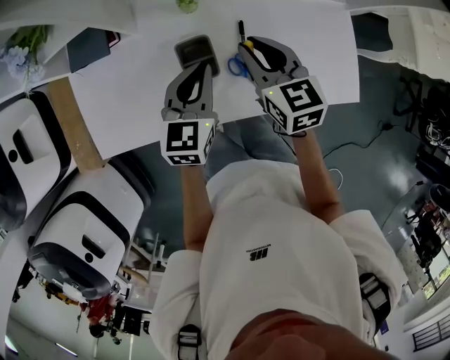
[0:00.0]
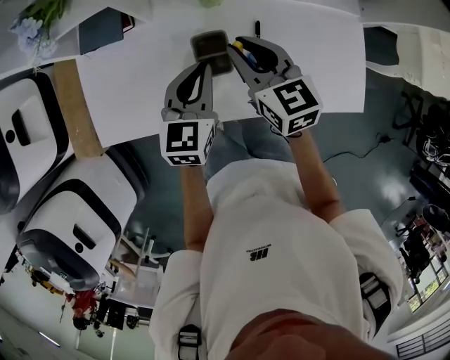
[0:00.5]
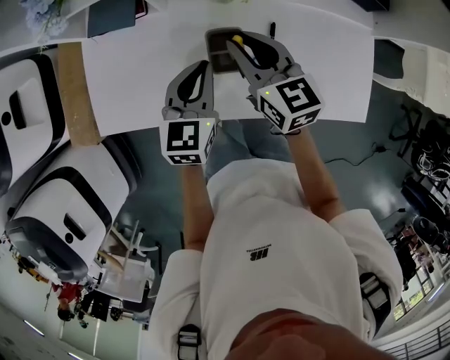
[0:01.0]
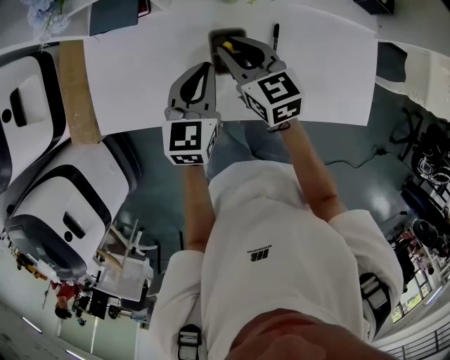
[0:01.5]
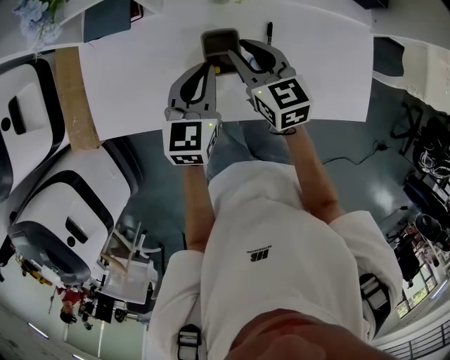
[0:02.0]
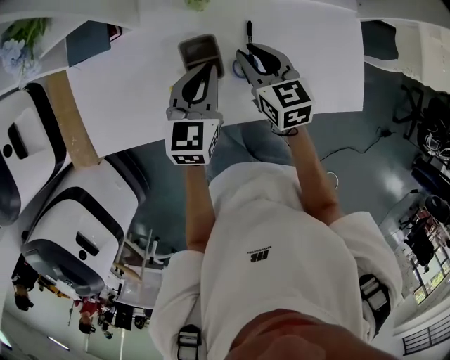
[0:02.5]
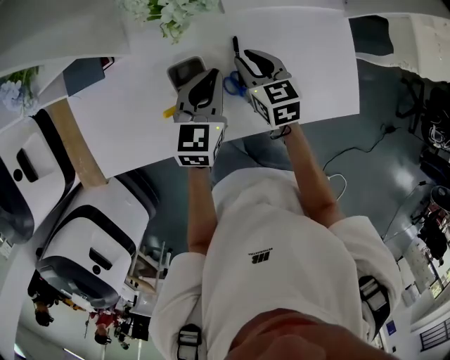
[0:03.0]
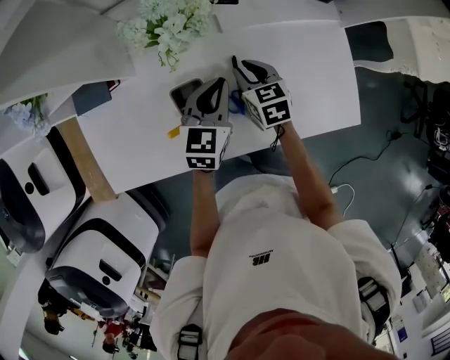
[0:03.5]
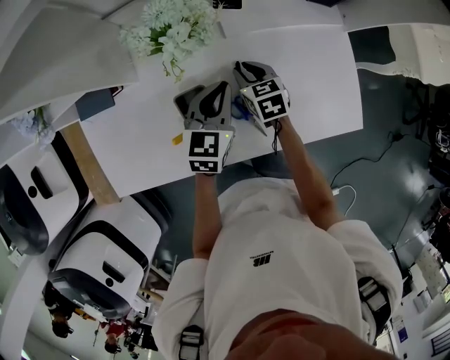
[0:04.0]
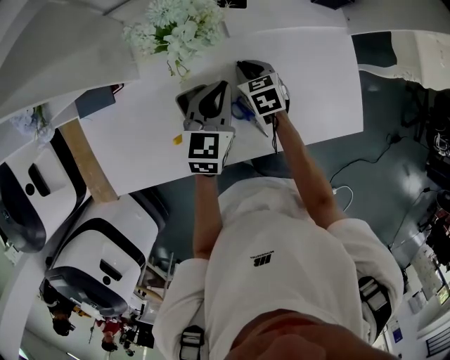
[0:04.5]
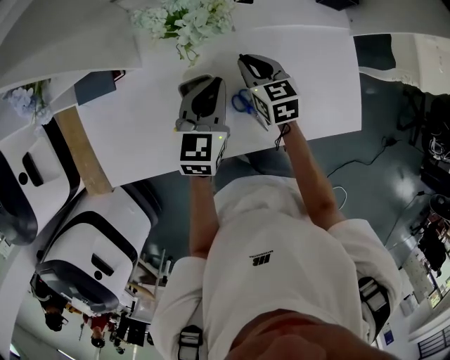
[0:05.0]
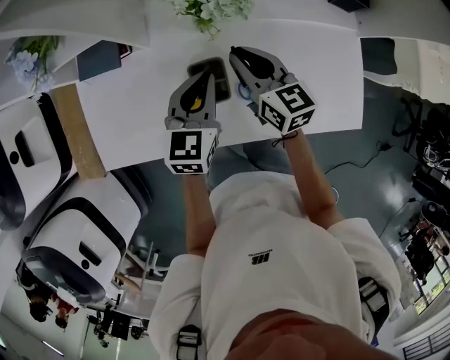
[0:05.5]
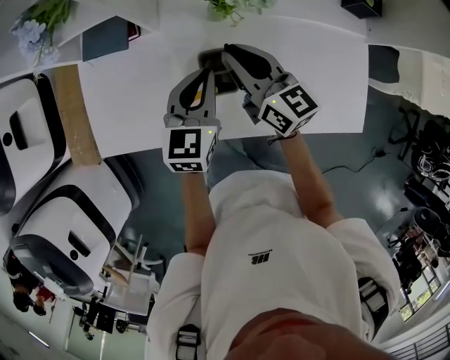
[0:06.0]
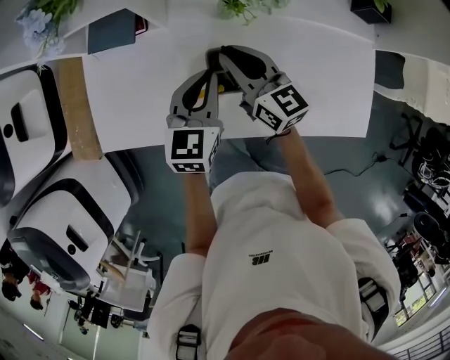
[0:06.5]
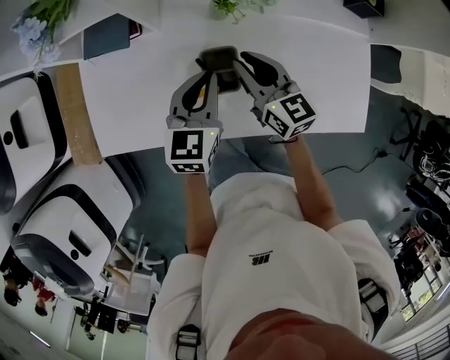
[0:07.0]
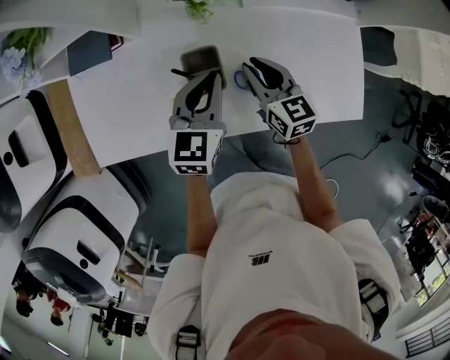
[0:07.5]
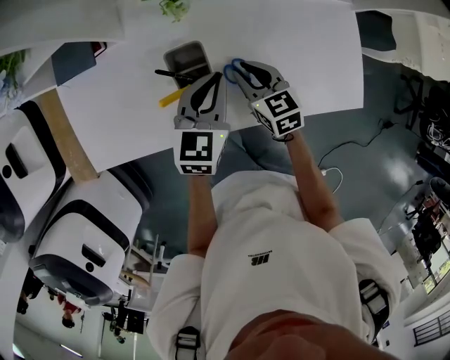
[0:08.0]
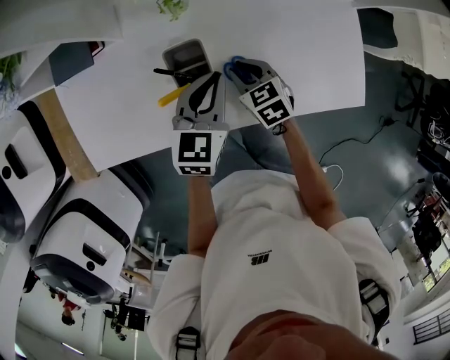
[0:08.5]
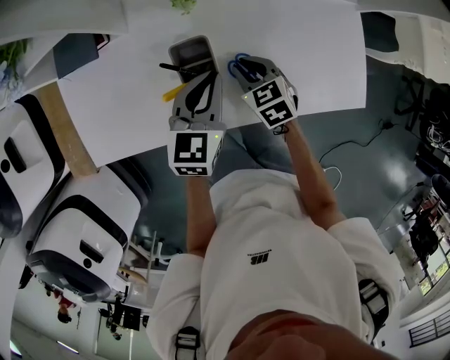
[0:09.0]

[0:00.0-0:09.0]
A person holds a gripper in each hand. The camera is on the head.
0.0 to 2.0 s: The two grippers go some 5 cm to the left.
2.0 to 4.5 s: The right gripper goes approximately 20 cm downward, to the right and forward, and changes its angle by about 20 degrees. Meanwhile the left gripper heads to the right and forward, covering about 15 cm.
4.5 to 7.0 s: The right gripper travels upward and to the left by about 20 cm, and tips its fingers upward by roughly 40 degrees. The left gripper travels to the left by roughly 10 cm.
7.0 to 9.0 s: The left gripper shifts approximately 5 cm to the right. The right gripper heads downward, backward and to the right, covering roughly 15 cm, and angles its fingers downward, by some 30 degrees.

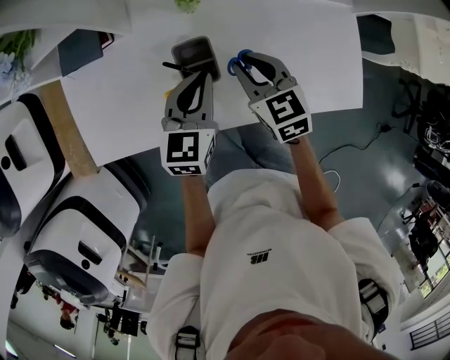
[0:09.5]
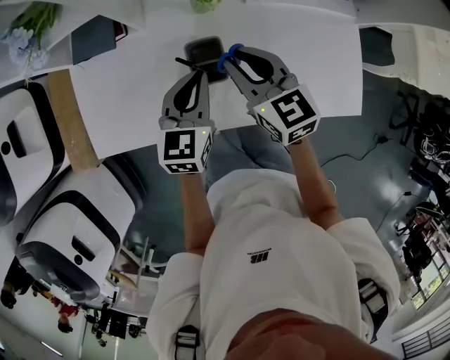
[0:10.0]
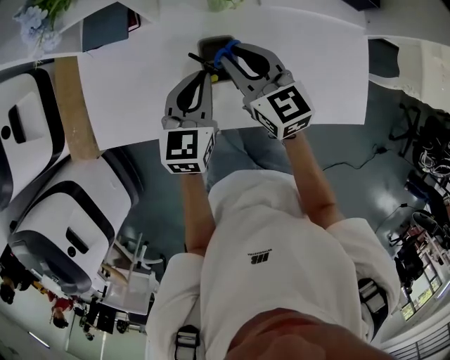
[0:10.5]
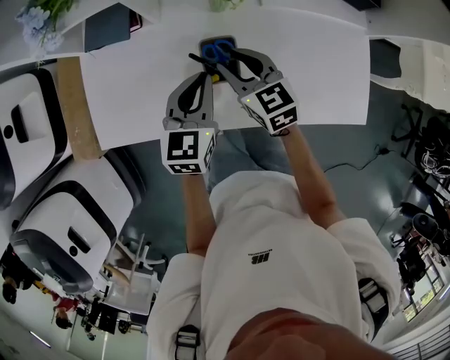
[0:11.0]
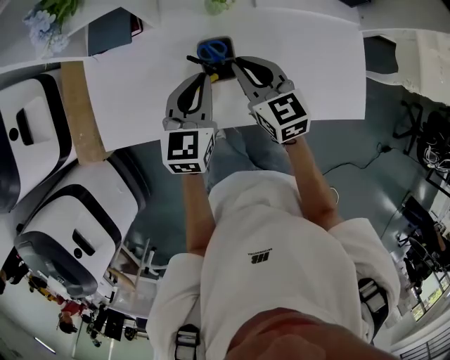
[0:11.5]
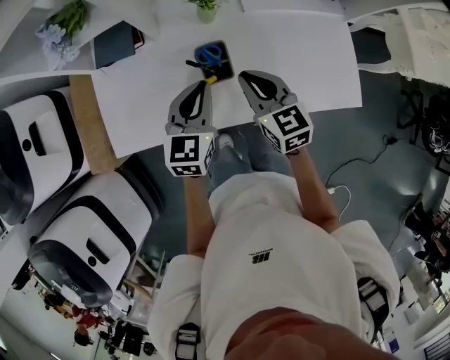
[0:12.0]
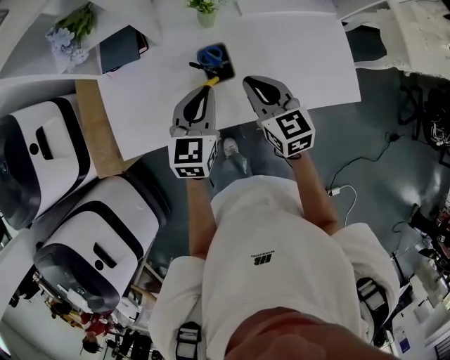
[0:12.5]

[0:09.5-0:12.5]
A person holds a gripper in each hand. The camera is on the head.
9.5 to 11.0 s: Both grippers travel together to the left, approximately 5 cm.
11.0 to 12.5 s: The left gripper shifts approximately 10 cm upward and backward, while the right gripper travels backward and upward by about 15 cm, and closes.

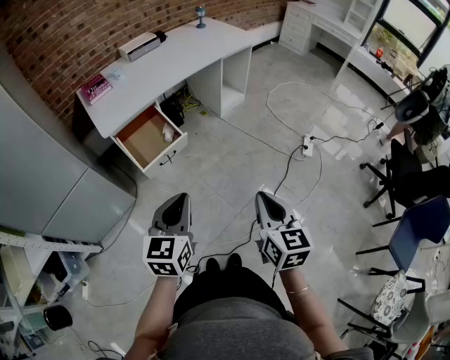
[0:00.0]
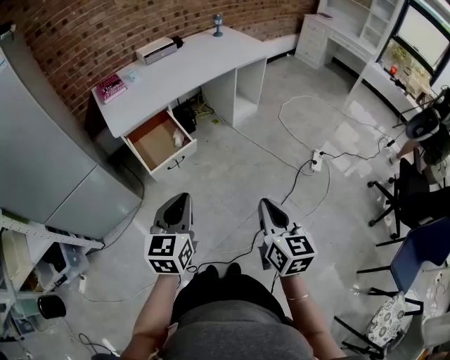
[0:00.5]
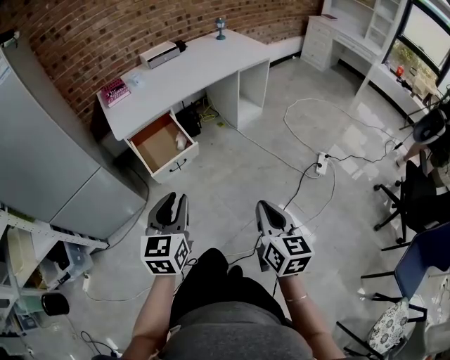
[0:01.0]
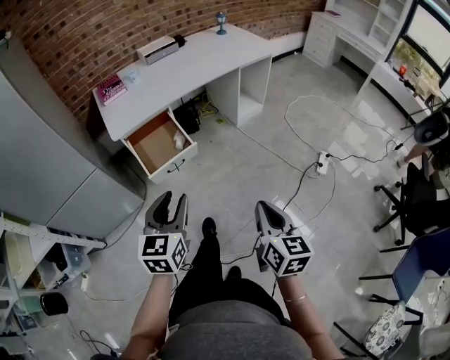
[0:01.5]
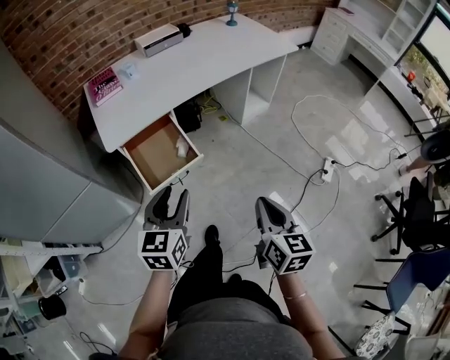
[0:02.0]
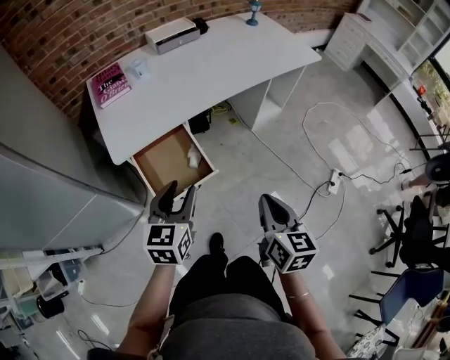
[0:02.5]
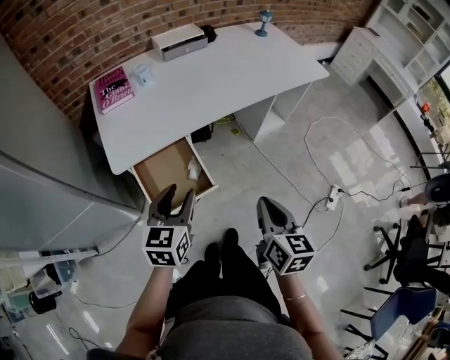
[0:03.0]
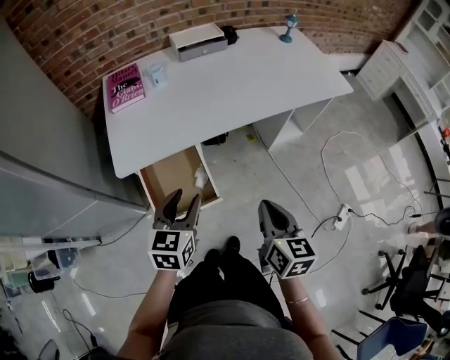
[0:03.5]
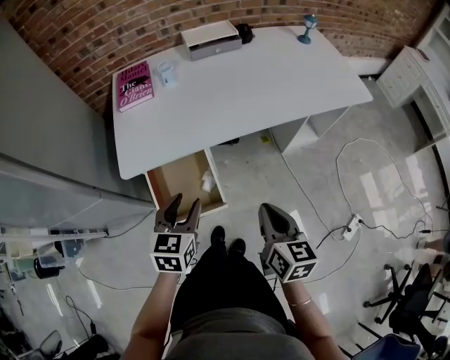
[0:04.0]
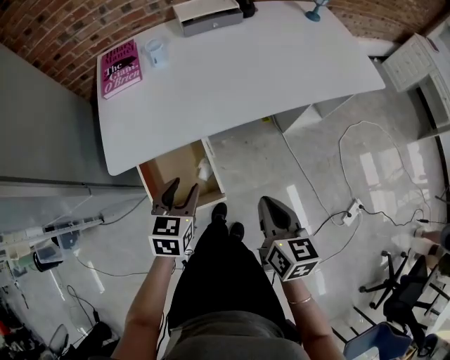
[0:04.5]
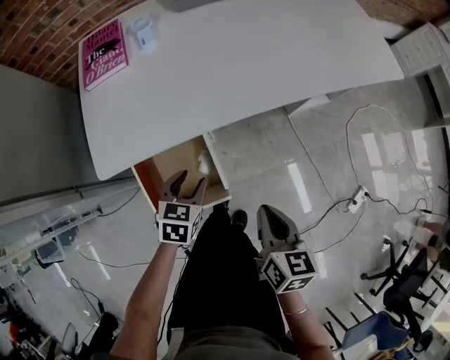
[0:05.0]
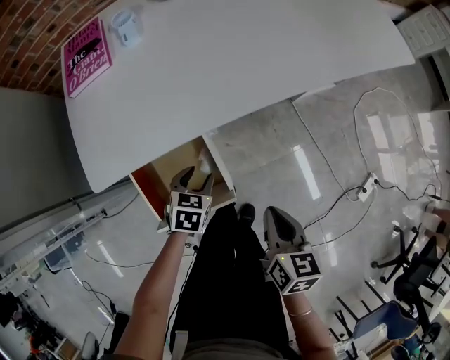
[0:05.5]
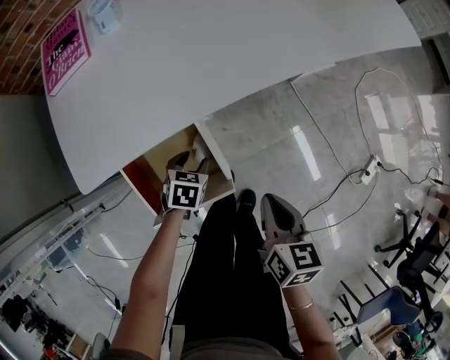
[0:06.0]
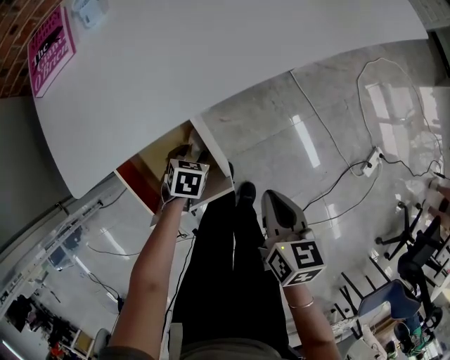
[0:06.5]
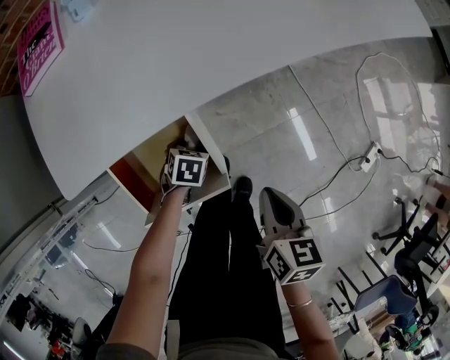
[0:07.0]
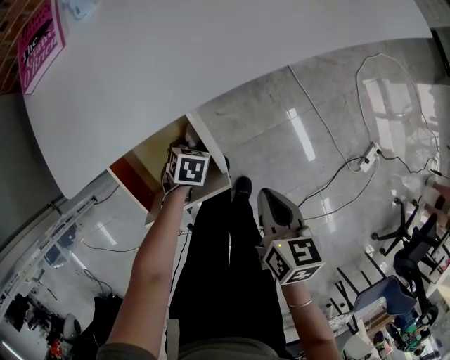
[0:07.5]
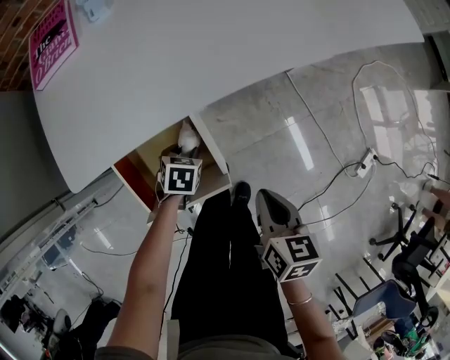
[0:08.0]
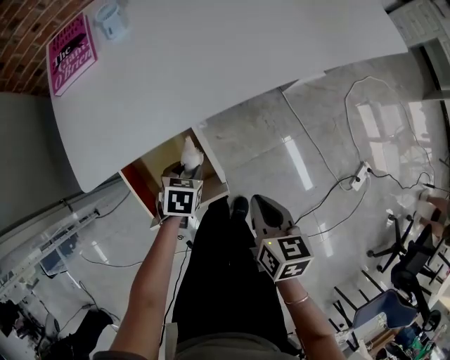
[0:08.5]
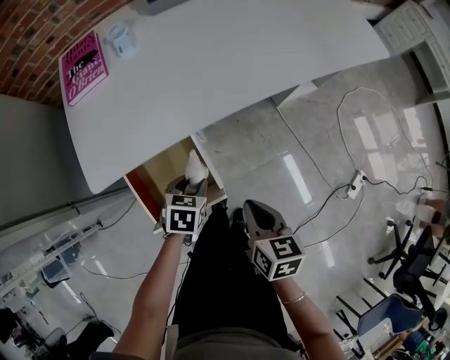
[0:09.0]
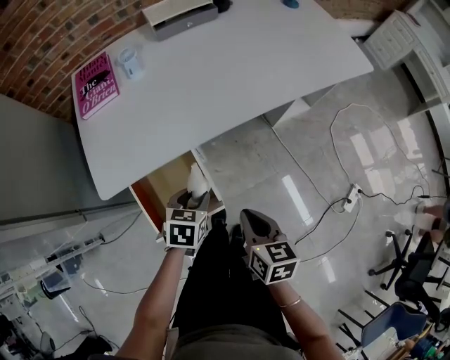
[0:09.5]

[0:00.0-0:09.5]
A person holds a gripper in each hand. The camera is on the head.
0.0 to 2.0 s: The grippers both shift forward by roughly 20 cm. The left gripper opens.
2.0 to 4.0 s: Both grippers travel together forward, approximately 25 cm.
4.0 to 5.5 s: The right gripper travels downward by about 15 cm, while the left gripper travels downward by some 25 cm, and changes its angle by approximately 30 degrees.
5.5 to 7.5 s: The right gripper heads downward, covering some 5 cm. The left gripper moves downward, approximately 15 cm.
7.5 to 9.5 s: The right gripper shifts roughly 10 cm upward; the left gripper goes approximately 25 cm upward, and rotates some 20 degrees.

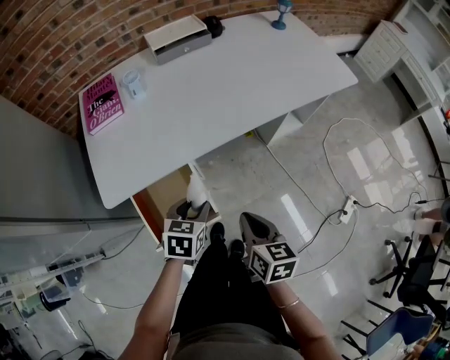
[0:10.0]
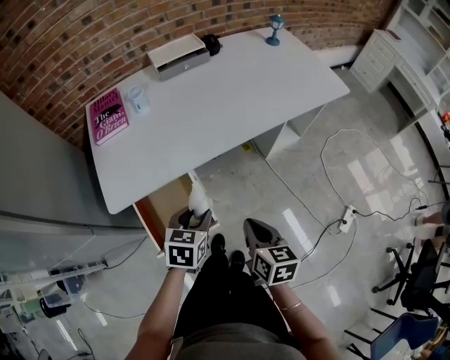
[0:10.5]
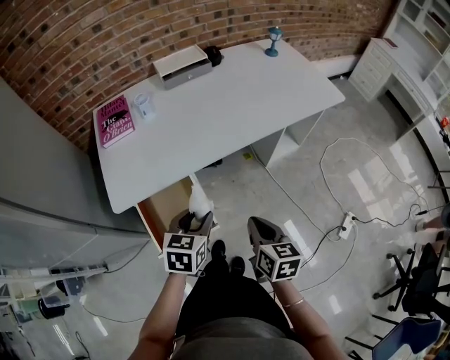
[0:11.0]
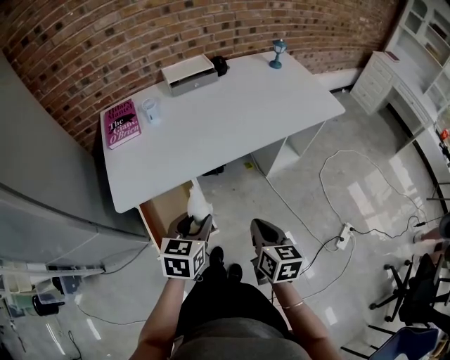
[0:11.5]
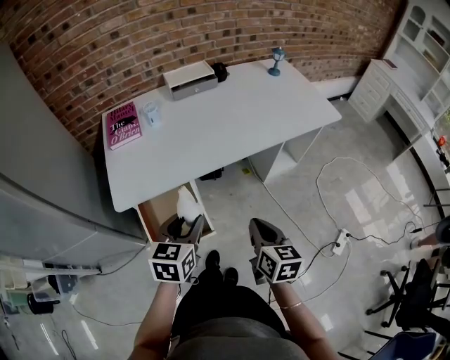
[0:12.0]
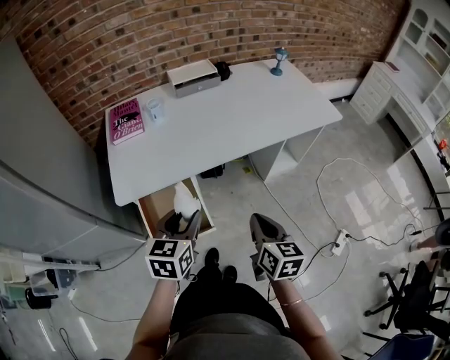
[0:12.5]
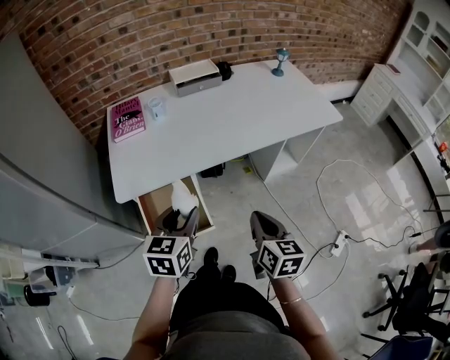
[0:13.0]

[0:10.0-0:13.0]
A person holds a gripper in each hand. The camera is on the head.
10.0 to 11.5 s: The left gripper is displaced upward by approximately 10 cm. Meanwhile the right gripper moves approximately 5 cm.
11.5 to 13.0 s: The left gripper moves about 5 cm.

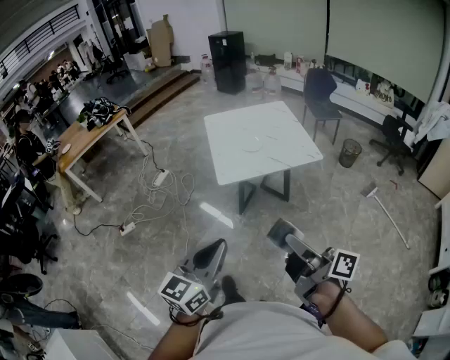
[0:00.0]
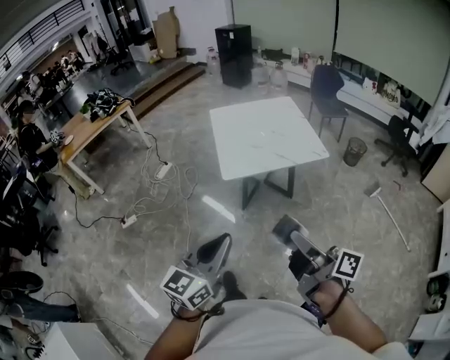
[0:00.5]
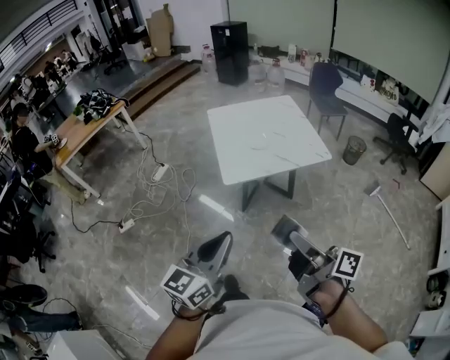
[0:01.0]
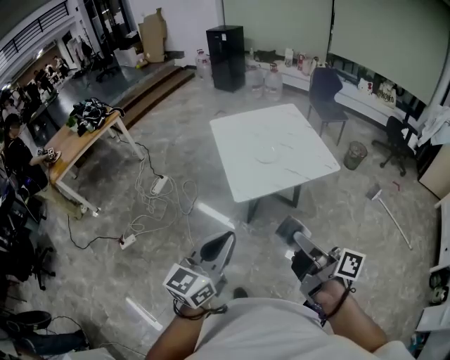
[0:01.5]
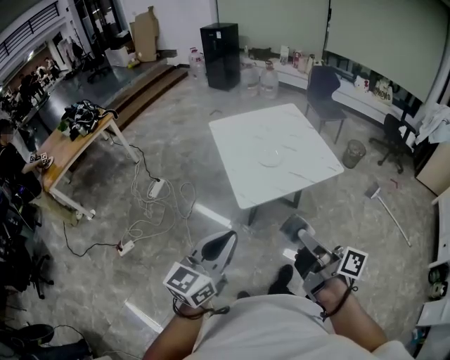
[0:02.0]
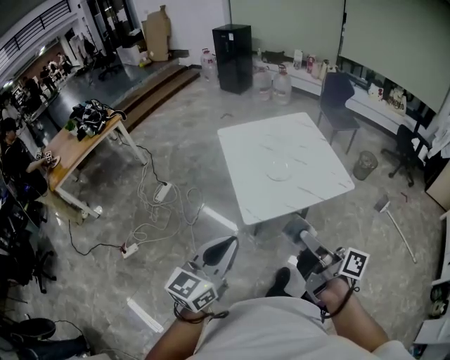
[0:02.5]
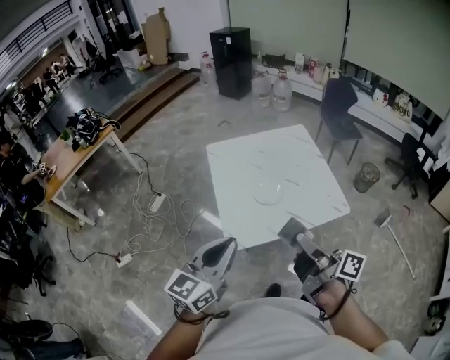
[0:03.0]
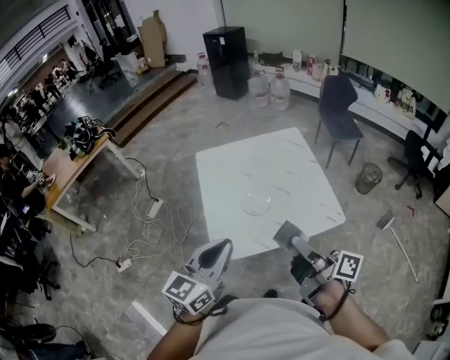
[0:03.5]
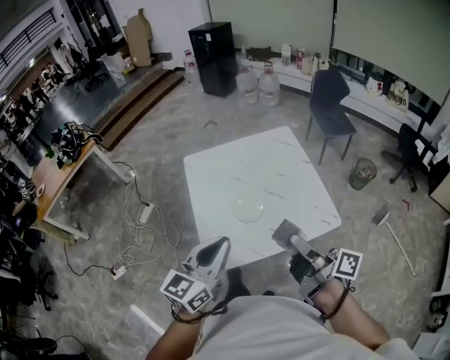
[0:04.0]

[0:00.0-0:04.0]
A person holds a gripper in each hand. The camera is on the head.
0.0 to 2.0 s: Both grippers move forward and to the left, roughly 30 cm.
2.0 to 4.0 s: The two grippers travel together, forward and to the right, roughly 40 cm.
